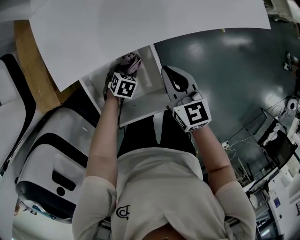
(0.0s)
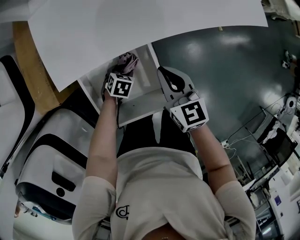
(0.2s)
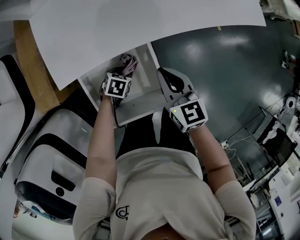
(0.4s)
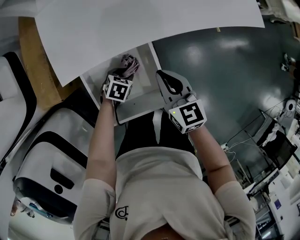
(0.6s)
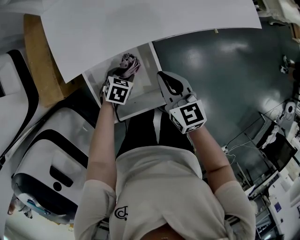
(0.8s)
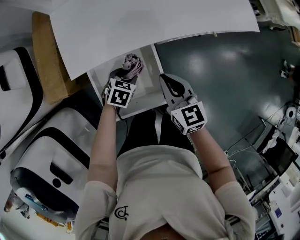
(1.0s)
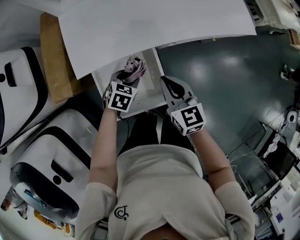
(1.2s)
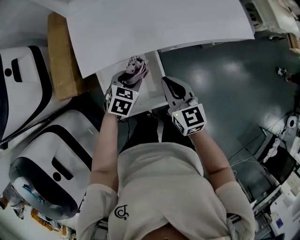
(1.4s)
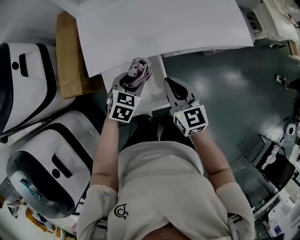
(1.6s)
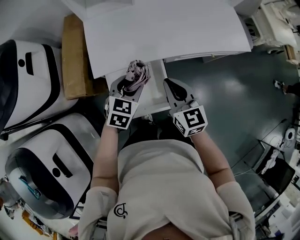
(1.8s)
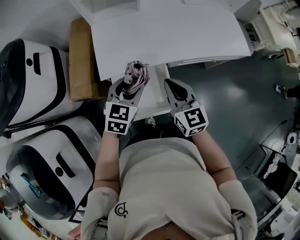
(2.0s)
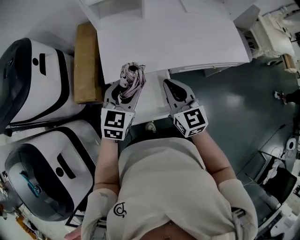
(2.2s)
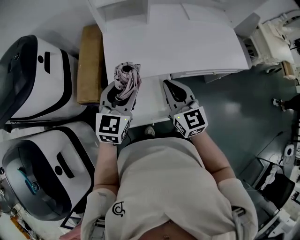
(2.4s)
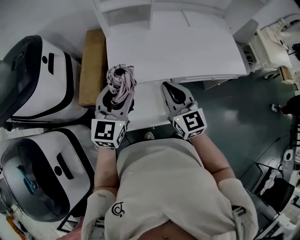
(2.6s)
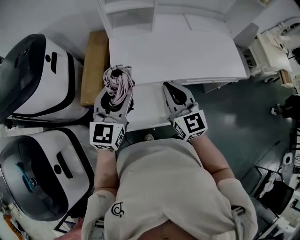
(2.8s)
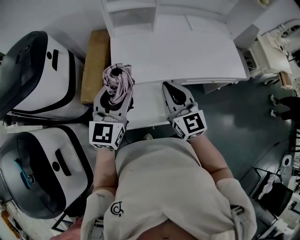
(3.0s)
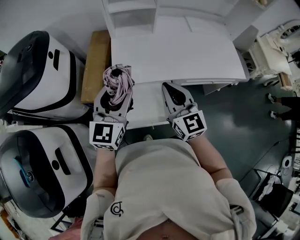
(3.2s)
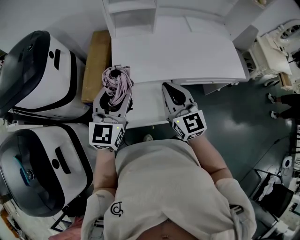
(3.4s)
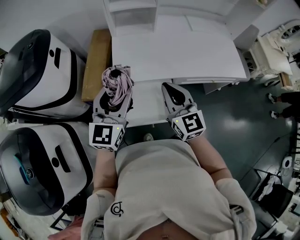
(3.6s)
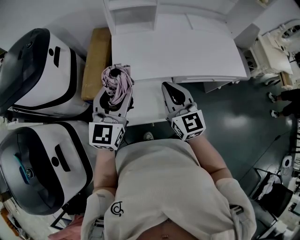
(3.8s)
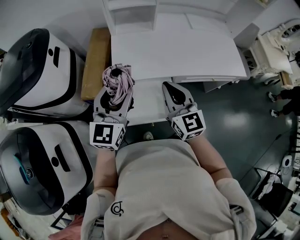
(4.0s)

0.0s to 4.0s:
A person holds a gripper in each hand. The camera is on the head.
0.0s to 1.4s: The left gripper is displaced upward by roughly 20 cm, and changes its angle by some 20 degrees, while the right gripper shifts approximately 10 cm upward.
1.4s to 2.6s: The left gripper heads upward and to the left, covering roughly 30 cm, and points its fingers about 40 degrees further upward. The right gripper shifts some 15 cm upward and to the left, and turns by approximately 20 degrees.
2.6s to 4.0s: The grippers stay close to where they were, moving slightly.

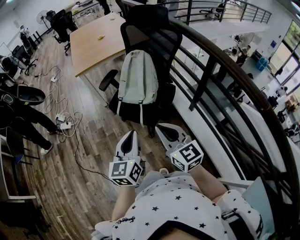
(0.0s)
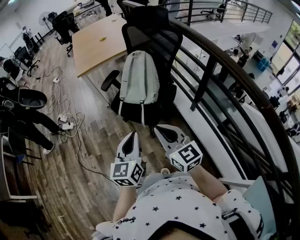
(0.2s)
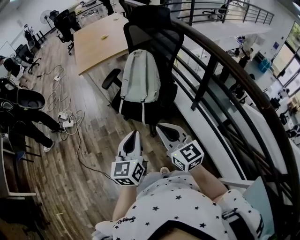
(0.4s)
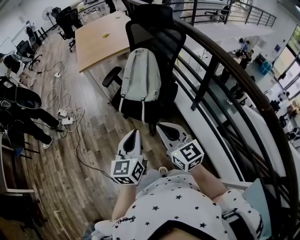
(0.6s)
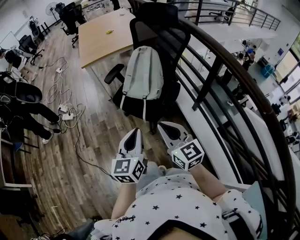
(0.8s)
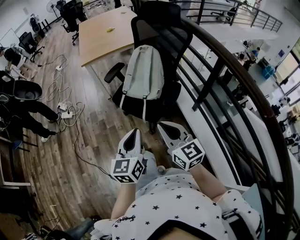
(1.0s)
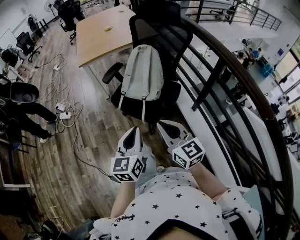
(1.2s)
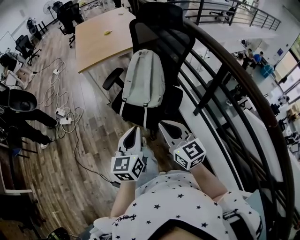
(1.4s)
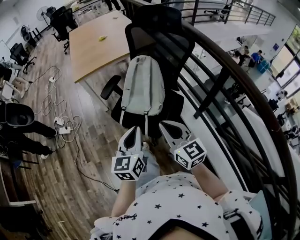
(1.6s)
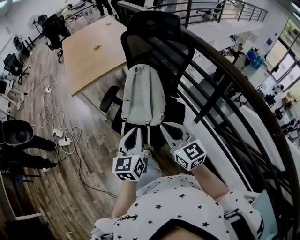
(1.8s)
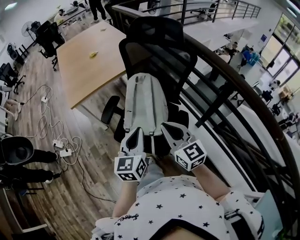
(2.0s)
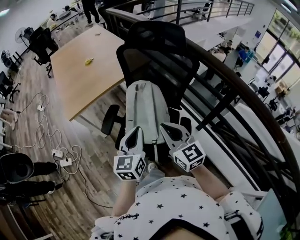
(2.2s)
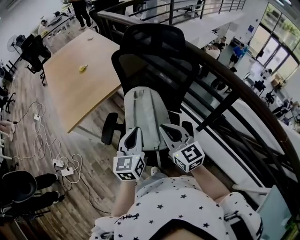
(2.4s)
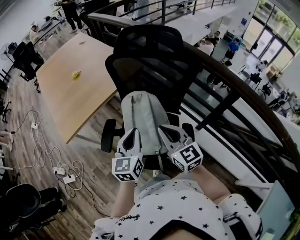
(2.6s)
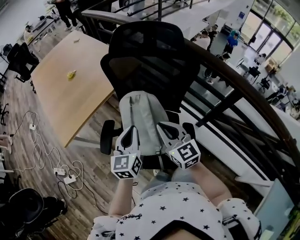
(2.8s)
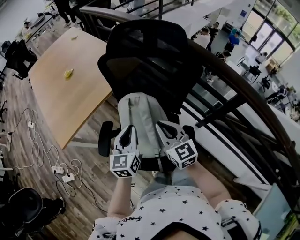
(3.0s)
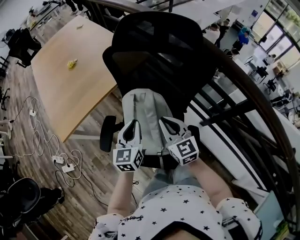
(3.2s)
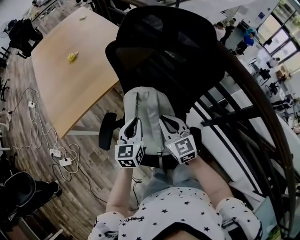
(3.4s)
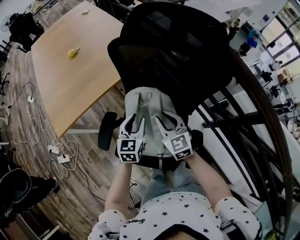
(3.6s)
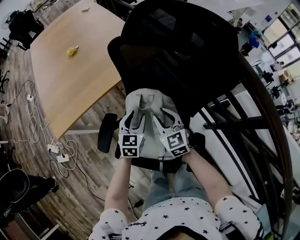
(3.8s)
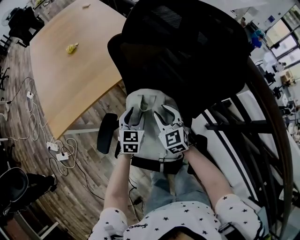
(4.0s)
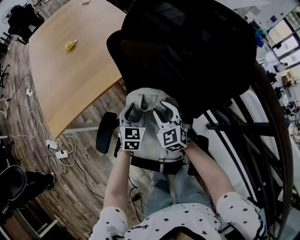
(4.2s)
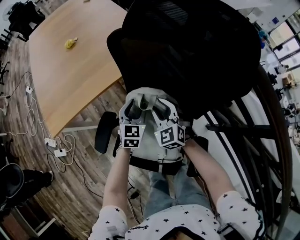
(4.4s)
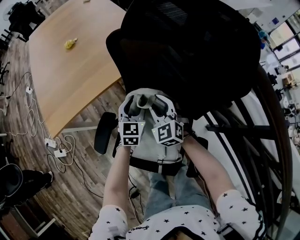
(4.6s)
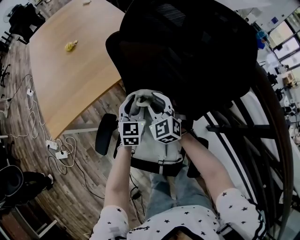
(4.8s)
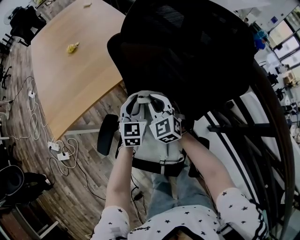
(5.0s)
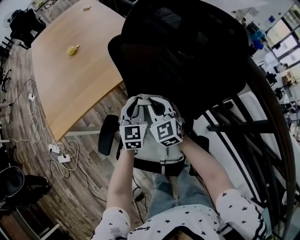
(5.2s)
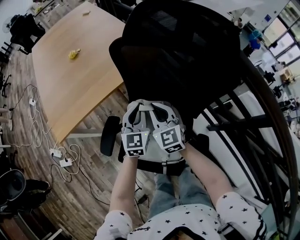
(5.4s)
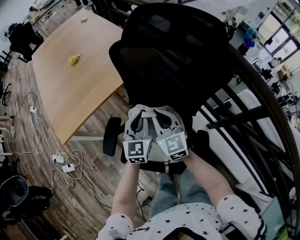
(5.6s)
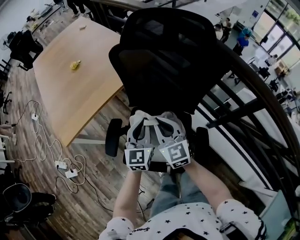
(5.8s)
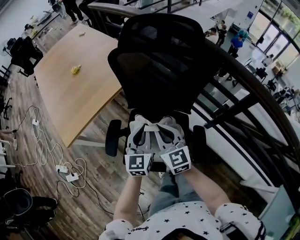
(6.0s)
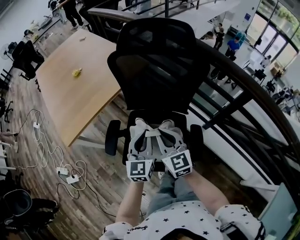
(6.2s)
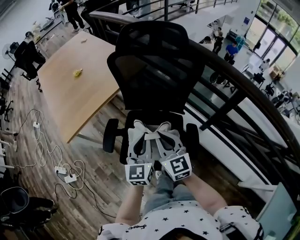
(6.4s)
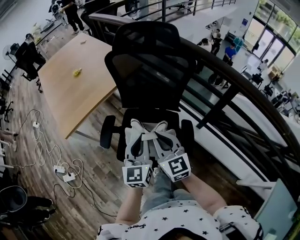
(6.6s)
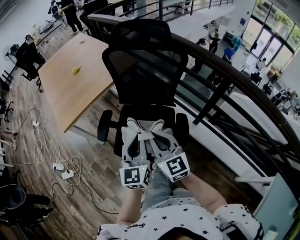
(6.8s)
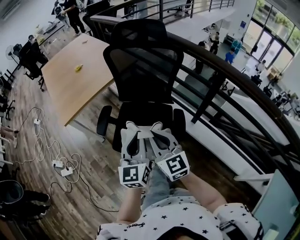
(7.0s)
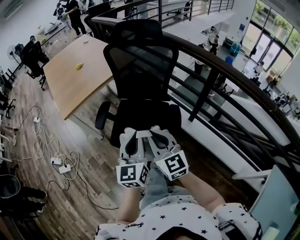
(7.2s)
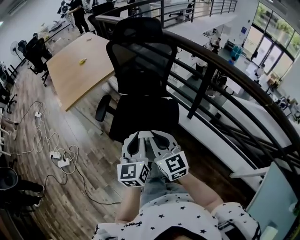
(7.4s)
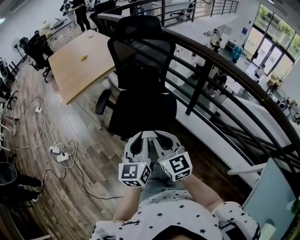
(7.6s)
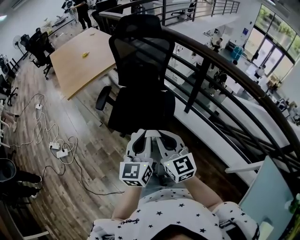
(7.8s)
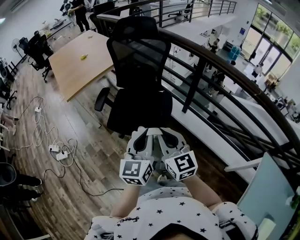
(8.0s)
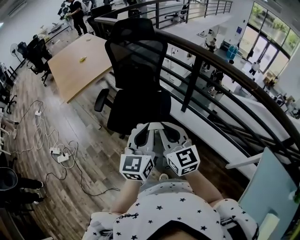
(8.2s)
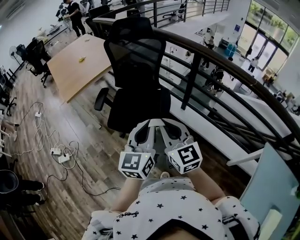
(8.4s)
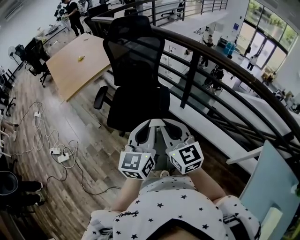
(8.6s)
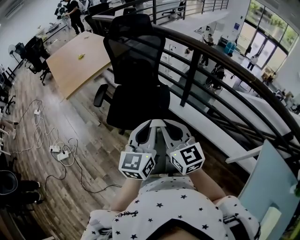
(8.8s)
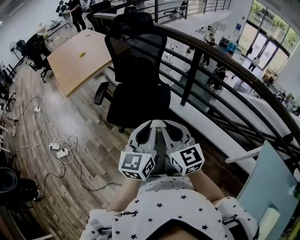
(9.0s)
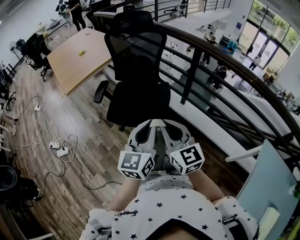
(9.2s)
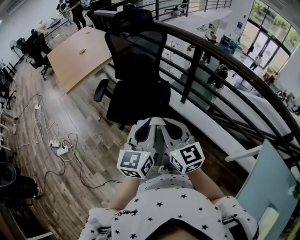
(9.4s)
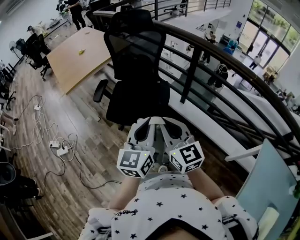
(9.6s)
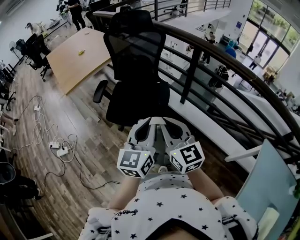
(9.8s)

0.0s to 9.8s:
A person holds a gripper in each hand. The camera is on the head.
0.0s to 1.4s: Both grippers move forward, some 5 cm.
1.4s to 2.8s: Both grippers are carried forward, roughly 40 cm. The right gripper changes its angle by roughly 20 degrees. The left gripper swivels about 20 degrees.
2.8s to 4.2s: The right gripper travels forward and downward by about 30 cm, swivels about 30 degrees, and opens up; the left gripper heads downward and forward, covering approximately 30 cm, rotates roughly 20 degrees, and opens up.
4.2s to 5.6s: Both grippers travel together upward and backward, roughly 15 cm. The right gripper rotates some 20 degrees, and closes its fingers; the left gripper closes its fingers.
5.6s to 7.0s: The two grippers go roughly 35 cm backward.
7.0s to 8.4s: Both grippers travel together backward, some 25 cm.
8.4s to 9.8s: There are only small adjustments of the grippers.

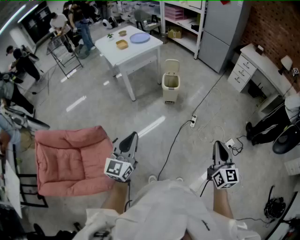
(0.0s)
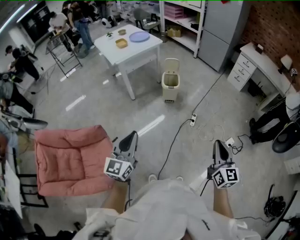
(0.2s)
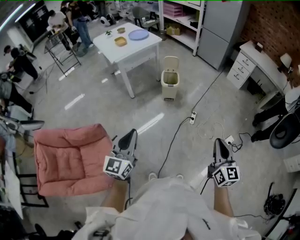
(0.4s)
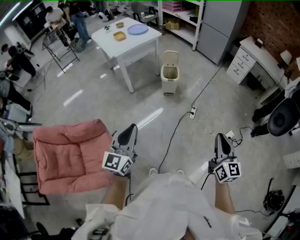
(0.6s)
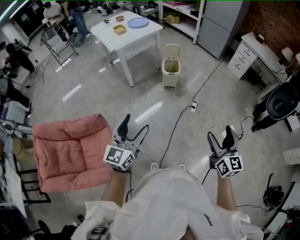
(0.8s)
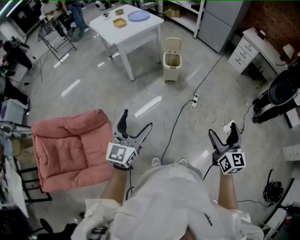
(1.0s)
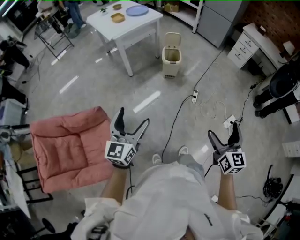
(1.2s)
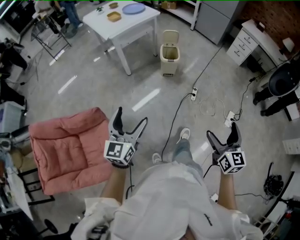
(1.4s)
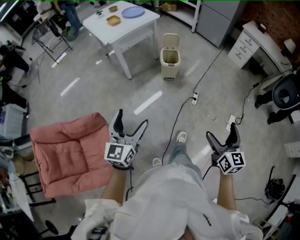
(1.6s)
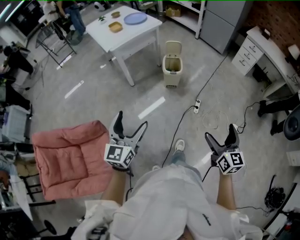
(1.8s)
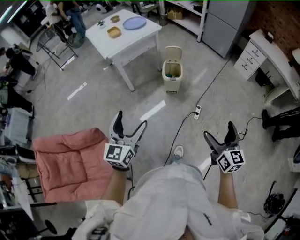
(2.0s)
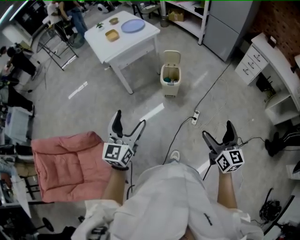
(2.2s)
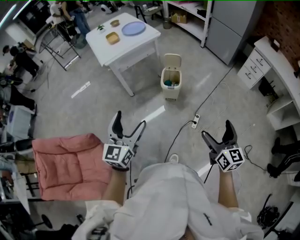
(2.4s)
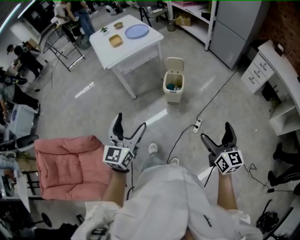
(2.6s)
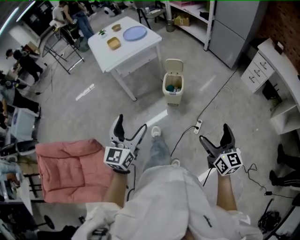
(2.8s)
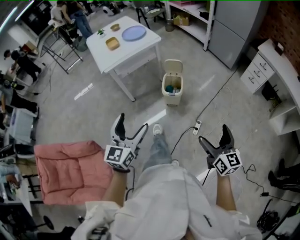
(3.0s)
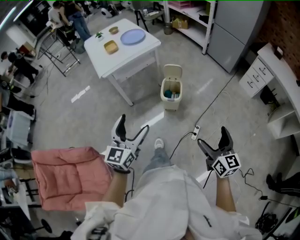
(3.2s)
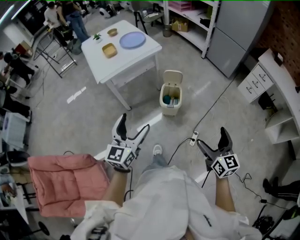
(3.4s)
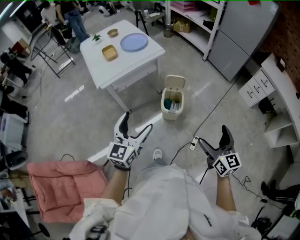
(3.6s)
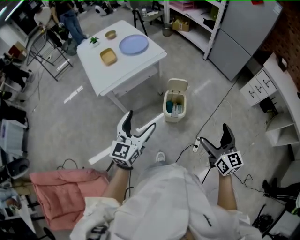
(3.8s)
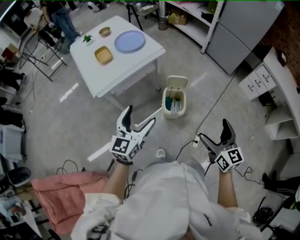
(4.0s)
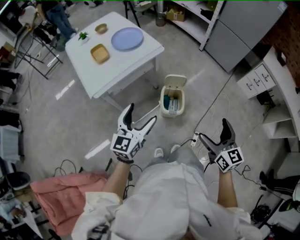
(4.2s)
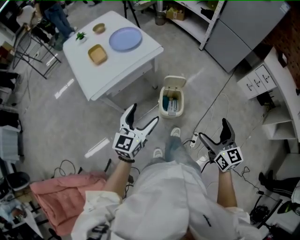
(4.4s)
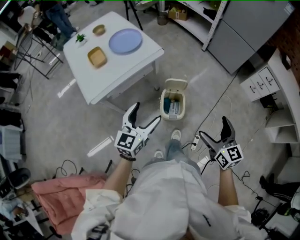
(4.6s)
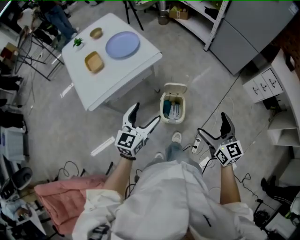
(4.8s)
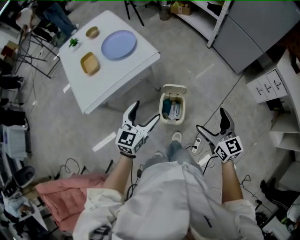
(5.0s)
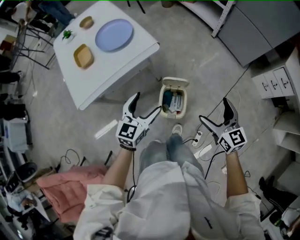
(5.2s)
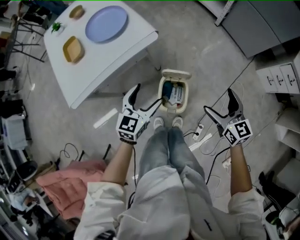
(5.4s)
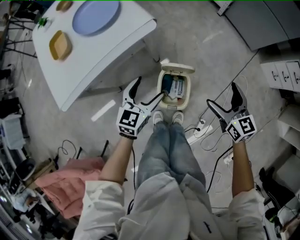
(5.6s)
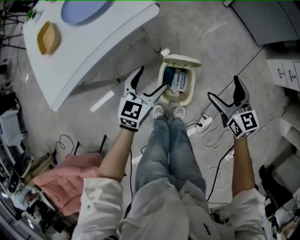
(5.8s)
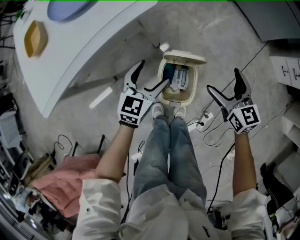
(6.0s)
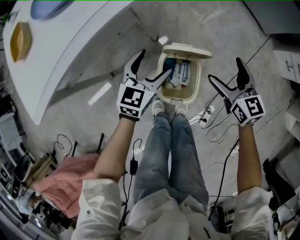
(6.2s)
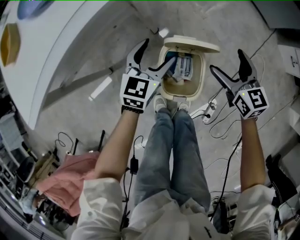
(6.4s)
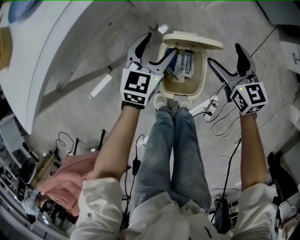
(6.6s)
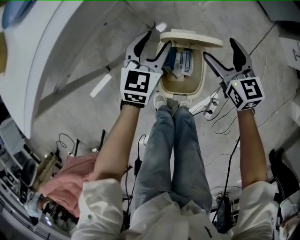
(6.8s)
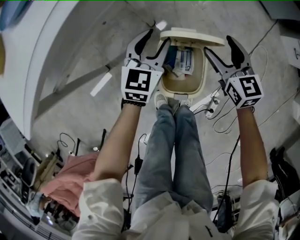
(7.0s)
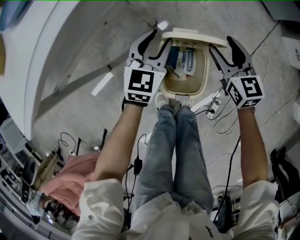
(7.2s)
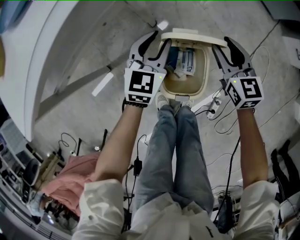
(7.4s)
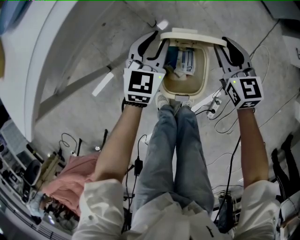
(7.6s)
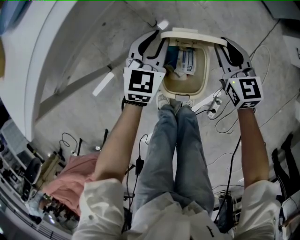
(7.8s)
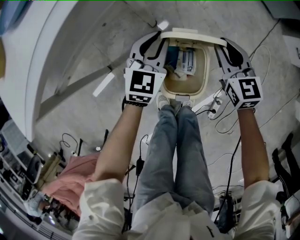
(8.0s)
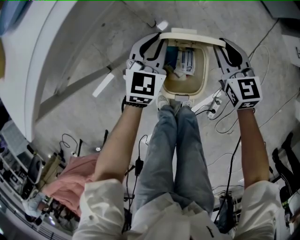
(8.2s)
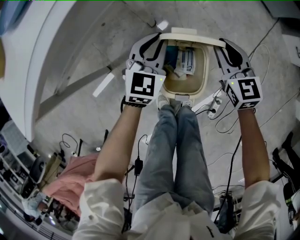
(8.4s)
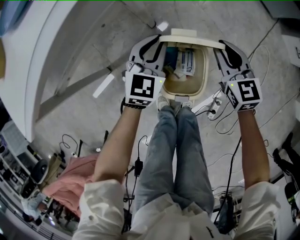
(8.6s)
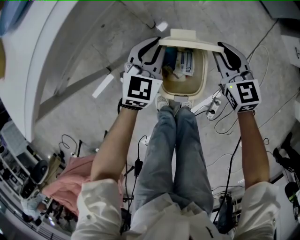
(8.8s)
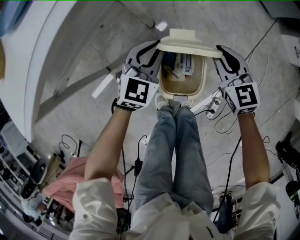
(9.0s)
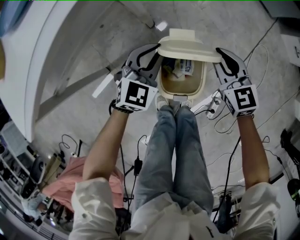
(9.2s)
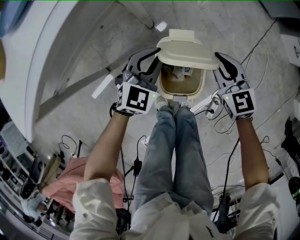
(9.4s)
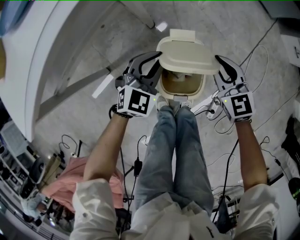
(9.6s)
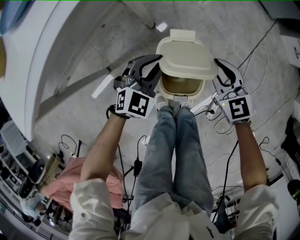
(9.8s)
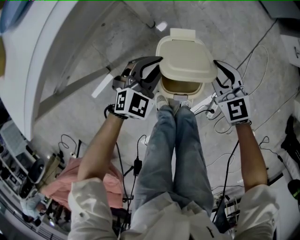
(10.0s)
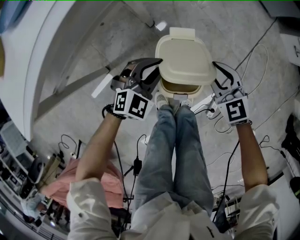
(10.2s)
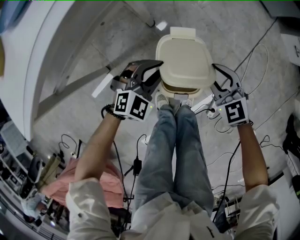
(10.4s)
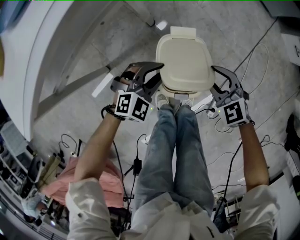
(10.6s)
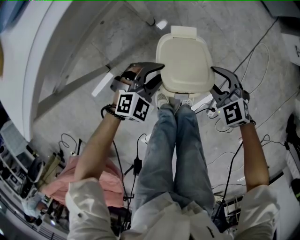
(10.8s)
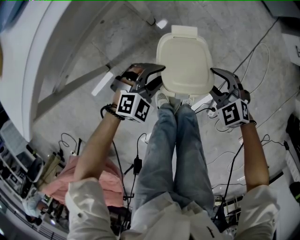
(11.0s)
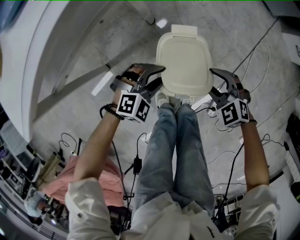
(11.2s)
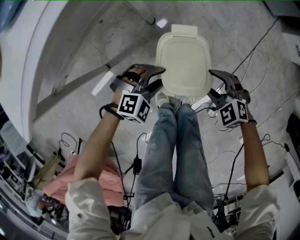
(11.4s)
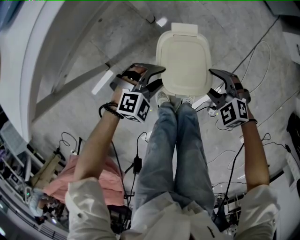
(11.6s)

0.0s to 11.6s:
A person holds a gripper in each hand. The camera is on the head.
0.0s to 1.4s: The right gripper travels to the left by some 5 cm, and opens up, while the left gripper heads to the left and downward, covering some 10 cm, and opens.
1.4s to 2.8s: Both grippers travel together forward and to the right, approximately 35 cm.
2.8s to 4.4s: Both grippers move forward, some 40 cm.
4.4s to 5.8s: The left gripper shifts approximately 40 cm downward and forward, while the right gripper goes approximately 50 cm forward and downward.
5.8s to 7.2s: The two grippers go roughly 20 cm downward and forward. The left gripper closes its fingers. The right gripper closes.
7.2s to 8.8s: The right gripper closes up.
8.8s to 10.2s: The grippers both shift backward by some 10 cm. The left gripper rotates about 30 degrees.
10.2s to 11.6s: Both grippers move backward and downward, some 10 cm. The right gripper changes its angle by approximately 30 degrees. The left gripper rotates about 20 degrees.
